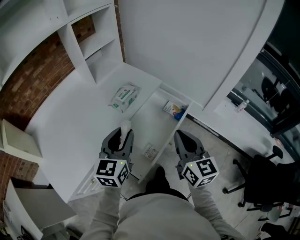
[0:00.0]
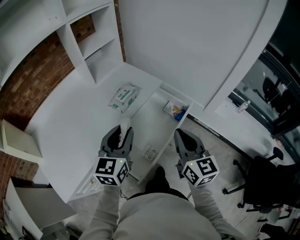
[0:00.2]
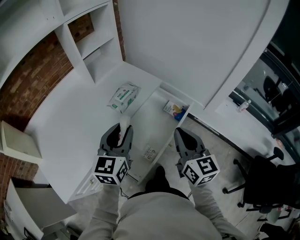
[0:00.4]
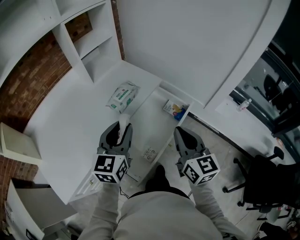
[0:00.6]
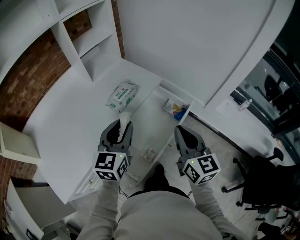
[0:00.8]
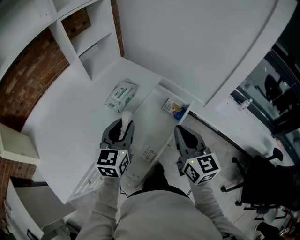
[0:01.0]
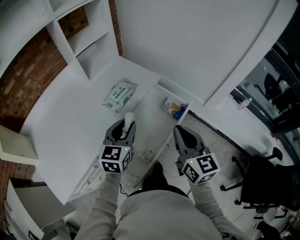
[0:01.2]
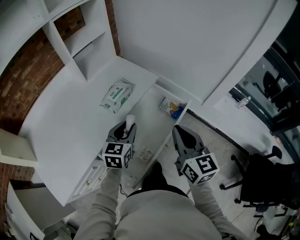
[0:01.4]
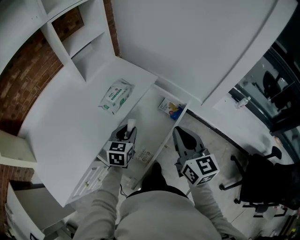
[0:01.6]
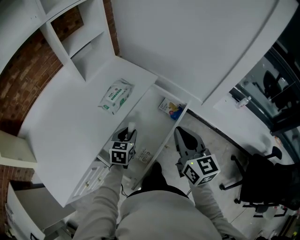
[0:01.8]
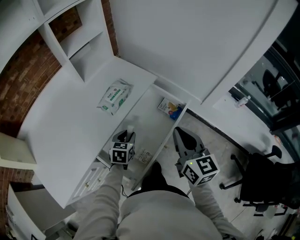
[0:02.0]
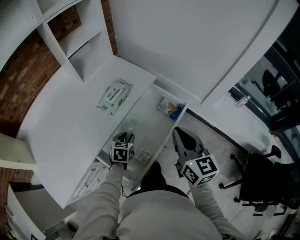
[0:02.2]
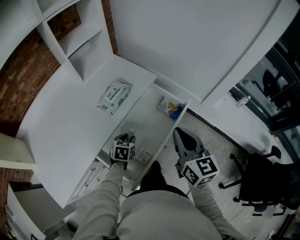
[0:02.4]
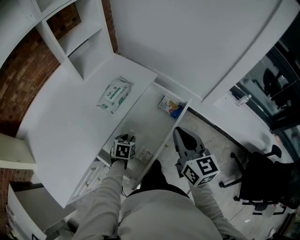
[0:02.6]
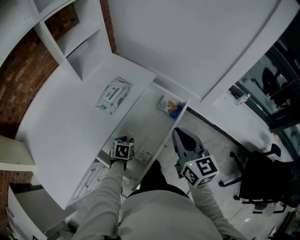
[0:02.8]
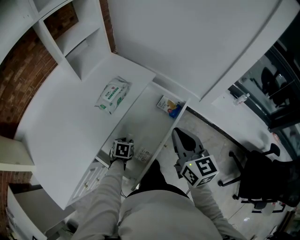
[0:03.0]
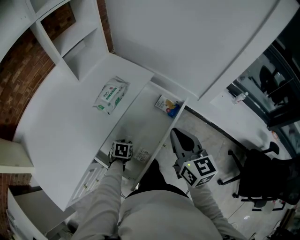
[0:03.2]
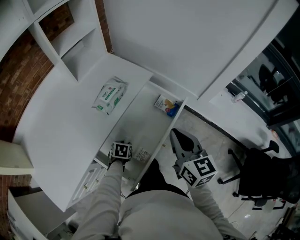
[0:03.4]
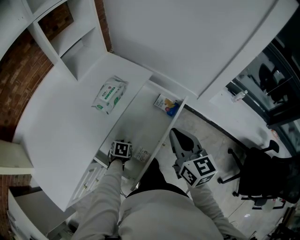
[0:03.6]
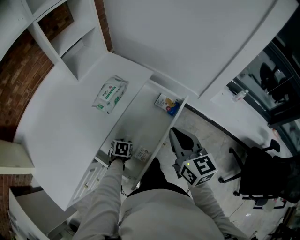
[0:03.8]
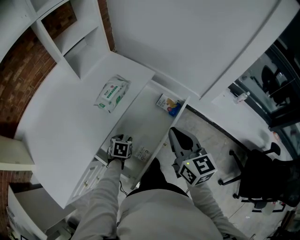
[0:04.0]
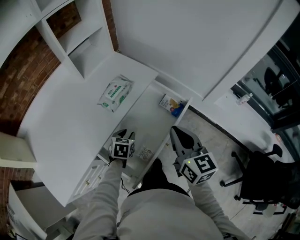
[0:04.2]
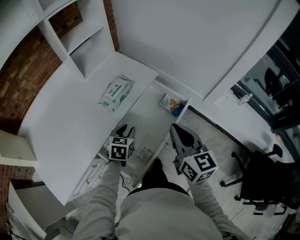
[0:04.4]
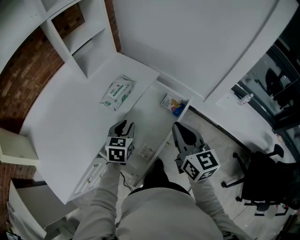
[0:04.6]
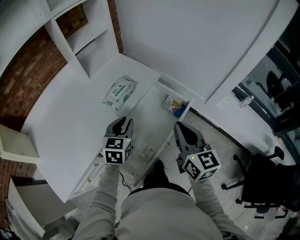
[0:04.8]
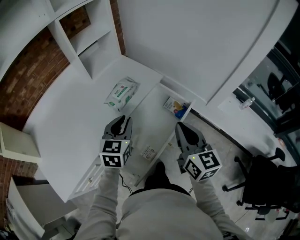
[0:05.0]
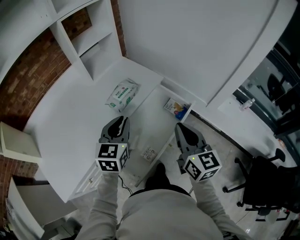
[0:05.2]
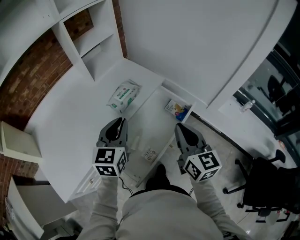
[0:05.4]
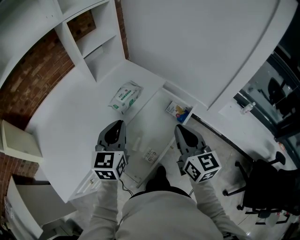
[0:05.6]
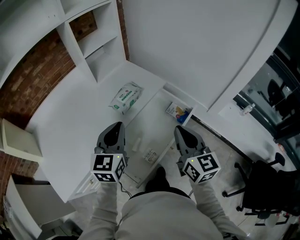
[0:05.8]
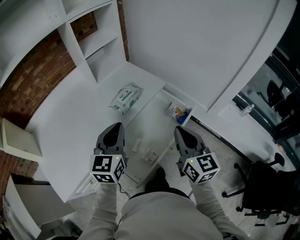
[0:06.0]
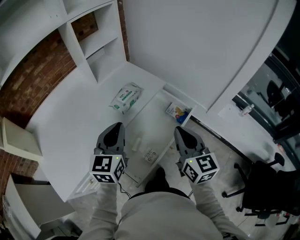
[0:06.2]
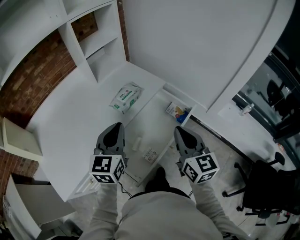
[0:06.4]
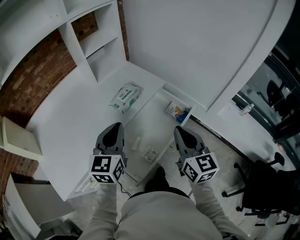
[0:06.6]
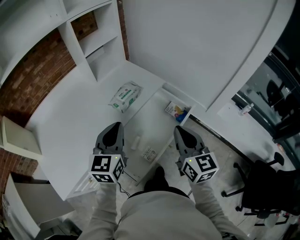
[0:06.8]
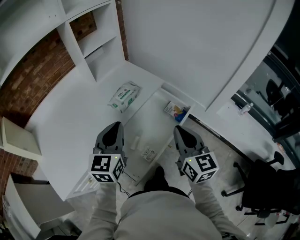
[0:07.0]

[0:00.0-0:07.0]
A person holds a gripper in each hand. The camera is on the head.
0:00.0 to 0:01.4: The right gripper shifts approximately 5 cm forward. The left gripper heads downward and forward, covering some 15 cm.
0:01.4 to 0:02.8: The left gripper travels downward by roughly 20 cm, and tips its fingers downward by some 30 degrees.
0:02.8 to 0:04.2: The left gripper heads upward, covering approximately 5 cm.
0:04.2 to 0:05.6: The left gripper is displaced upward by roughly 25 cm, points its fingers some 40 degrees further upward, and closes up.
0:05.6 to 0:07.0: The grippers move only a little.

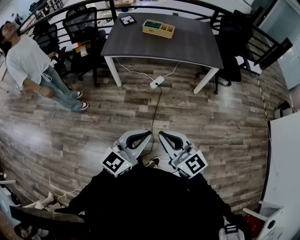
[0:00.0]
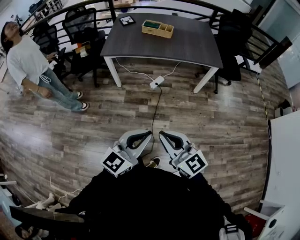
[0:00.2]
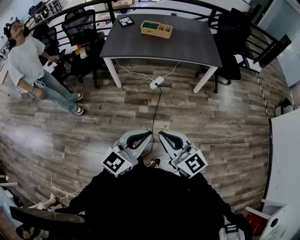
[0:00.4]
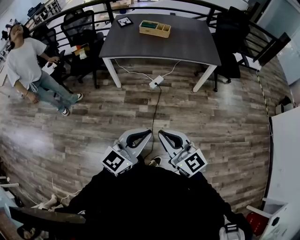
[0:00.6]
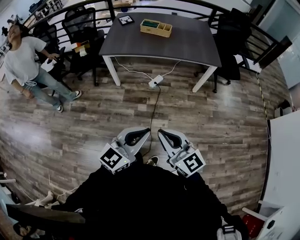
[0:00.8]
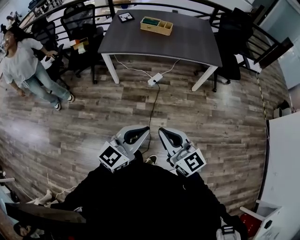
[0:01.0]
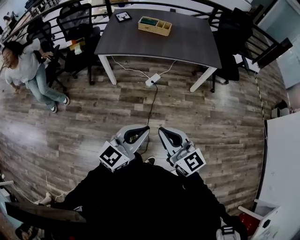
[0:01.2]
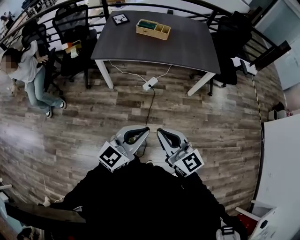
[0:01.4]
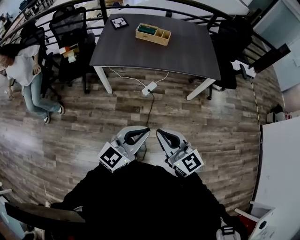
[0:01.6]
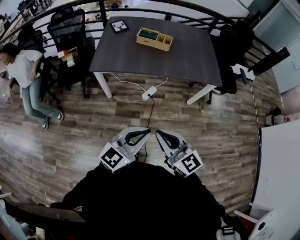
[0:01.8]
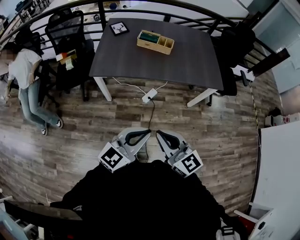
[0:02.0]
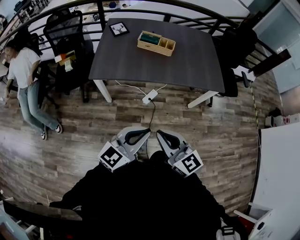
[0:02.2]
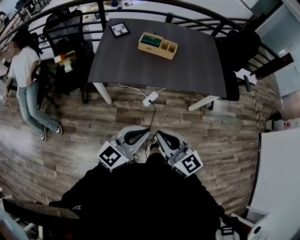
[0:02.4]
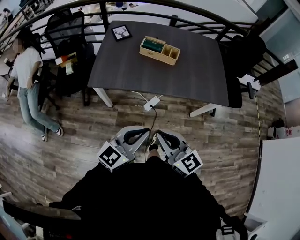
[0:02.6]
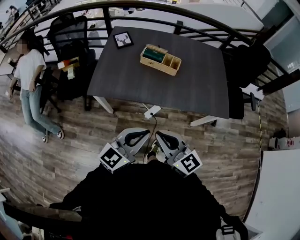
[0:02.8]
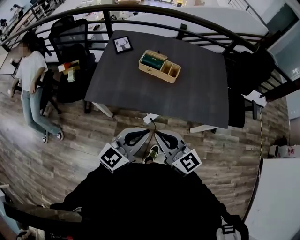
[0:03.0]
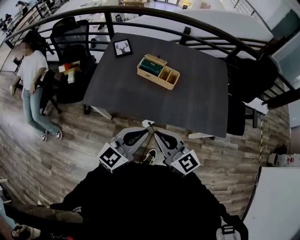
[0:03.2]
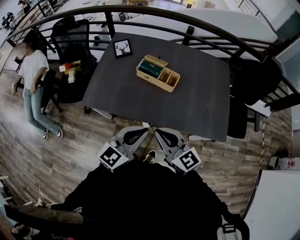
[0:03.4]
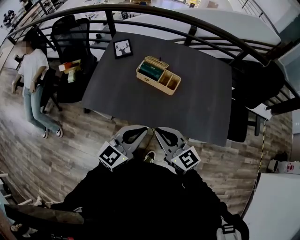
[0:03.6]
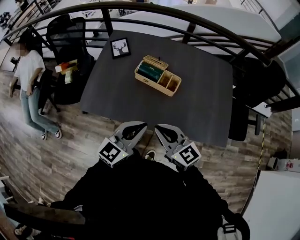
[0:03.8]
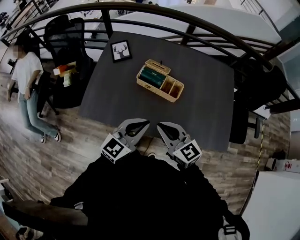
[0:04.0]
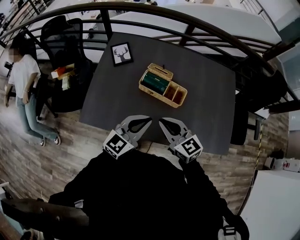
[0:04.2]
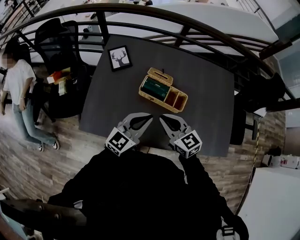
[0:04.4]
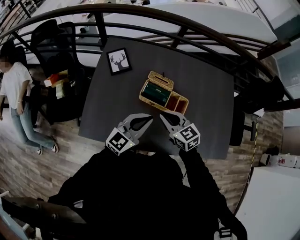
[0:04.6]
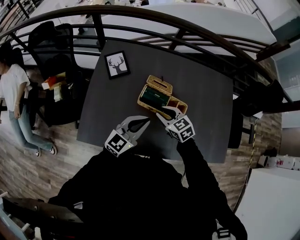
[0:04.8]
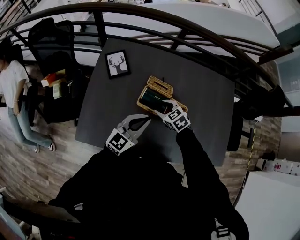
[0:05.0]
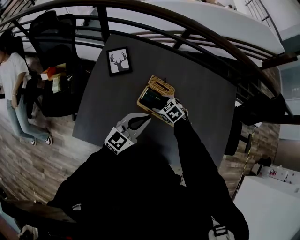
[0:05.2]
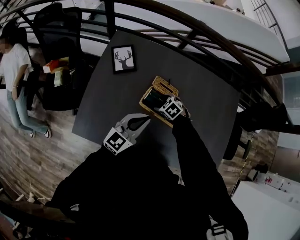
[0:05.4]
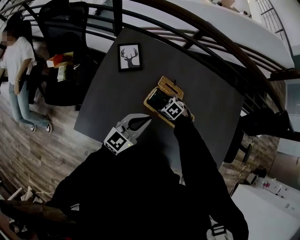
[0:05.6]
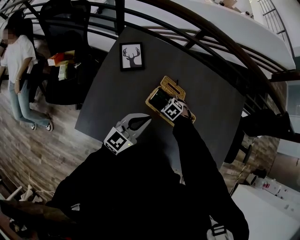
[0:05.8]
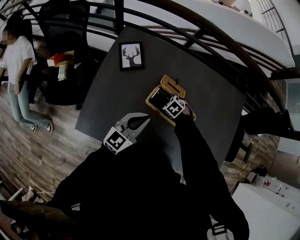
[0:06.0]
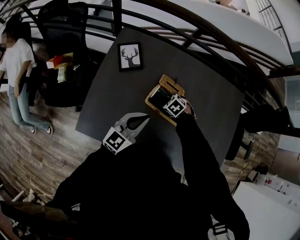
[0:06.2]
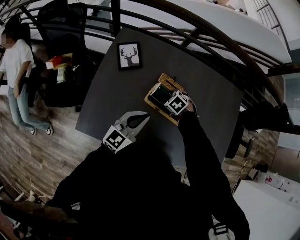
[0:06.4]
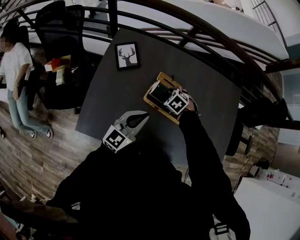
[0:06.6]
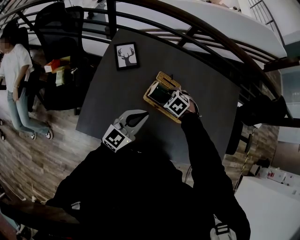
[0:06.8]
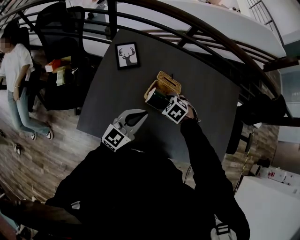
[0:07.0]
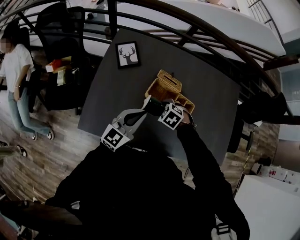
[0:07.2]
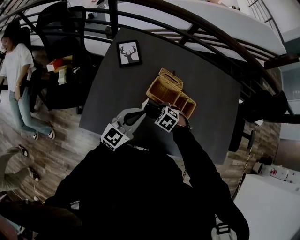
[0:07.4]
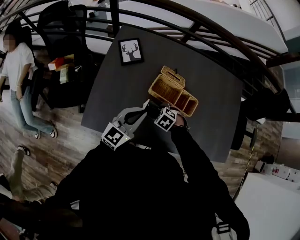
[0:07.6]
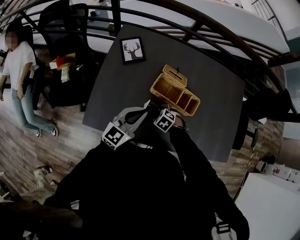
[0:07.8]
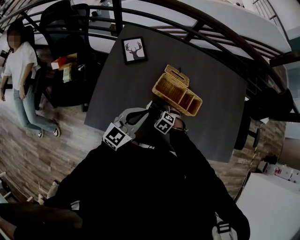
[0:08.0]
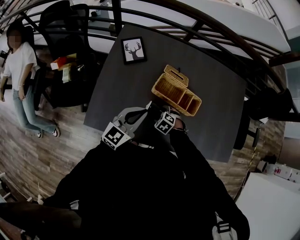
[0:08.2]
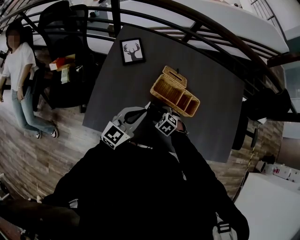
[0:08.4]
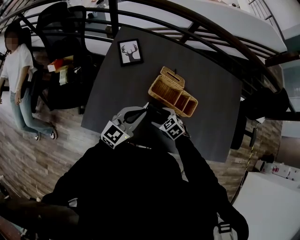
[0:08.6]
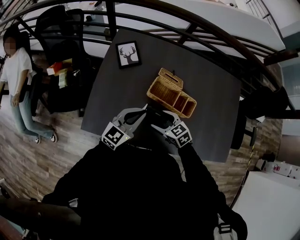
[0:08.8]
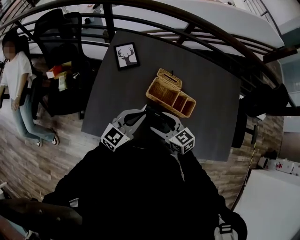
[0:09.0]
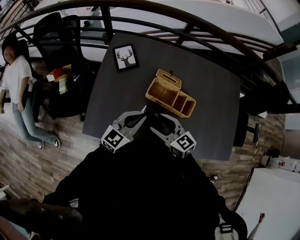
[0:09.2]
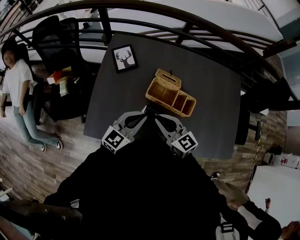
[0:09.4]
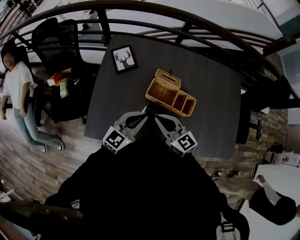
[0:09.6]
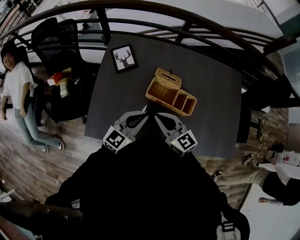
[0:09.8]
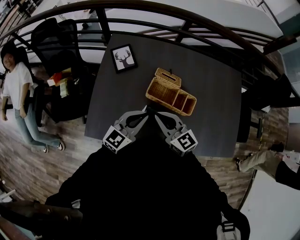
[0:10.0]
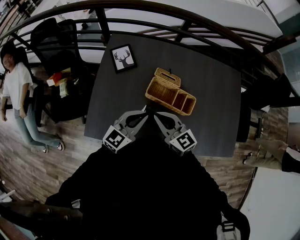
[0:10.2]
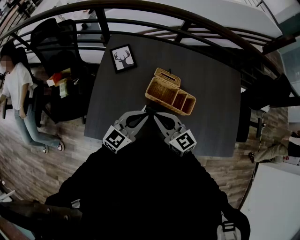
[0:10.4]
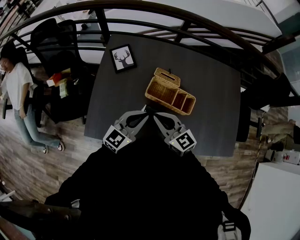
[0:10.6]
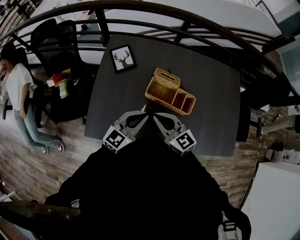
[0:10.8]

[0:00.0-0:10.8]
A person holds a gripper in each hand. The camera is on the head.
0:00.0 to 0:01.6: Both grippers travel together forward, roughly 15 cm.
0:01.6 to 0:03.0: The grippers both shift forward by some 35 cm.
0:03.0 to 0:04.6: The grippers both shift forward by some 40 cm. The right gripper changes its angle by approximately 20 degrees.
0:04.6 to 0:06.2: The left gripper ends up roughly 10 cm from where it was. Meanwhile the right gripper heads downward, covering approximately 20 cm, points its fingers some 50 degrees further downward, and opens up.
0:06.2 to 0:07.8: The right gripper goes upward and returns, some 10 cm each way; the left gripper shifts by approximately 5 cm.
0:07.8 to 0:09.2: The right gripper heads upward, covering about 20 cm, and tilts its fingers some 60 degrees upward.
0:09.2 to 0:10.8: The right gripper closes.

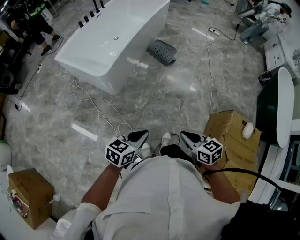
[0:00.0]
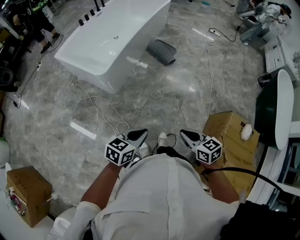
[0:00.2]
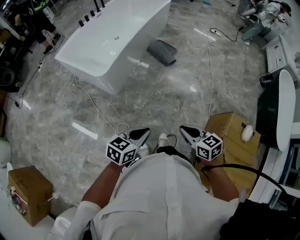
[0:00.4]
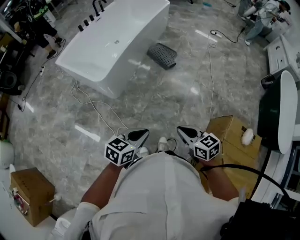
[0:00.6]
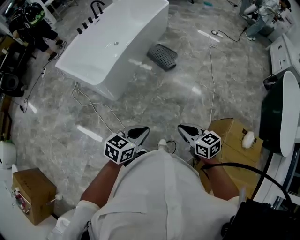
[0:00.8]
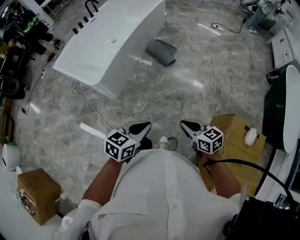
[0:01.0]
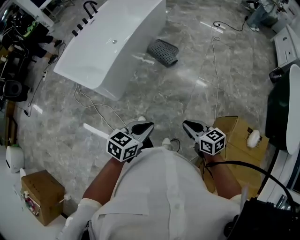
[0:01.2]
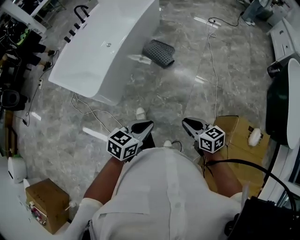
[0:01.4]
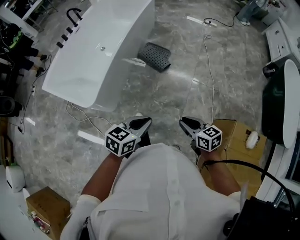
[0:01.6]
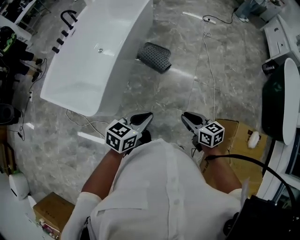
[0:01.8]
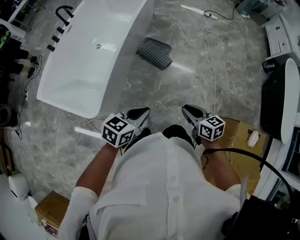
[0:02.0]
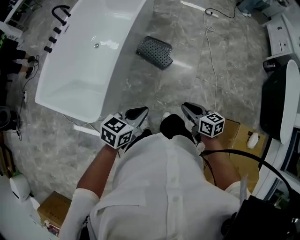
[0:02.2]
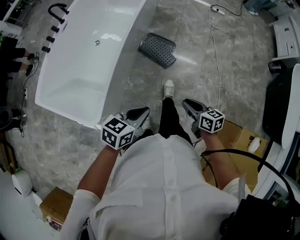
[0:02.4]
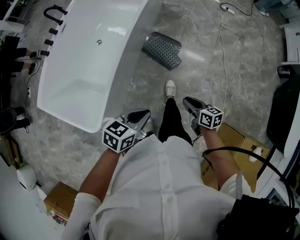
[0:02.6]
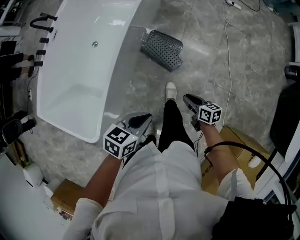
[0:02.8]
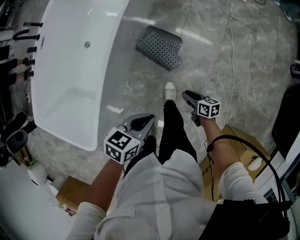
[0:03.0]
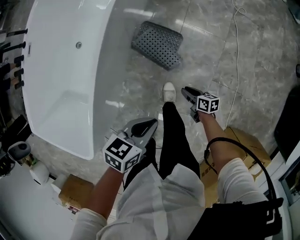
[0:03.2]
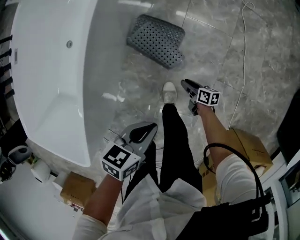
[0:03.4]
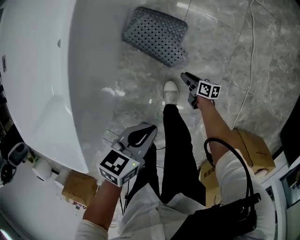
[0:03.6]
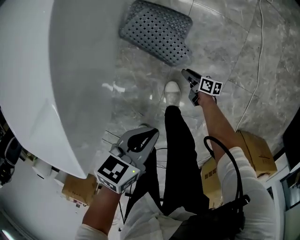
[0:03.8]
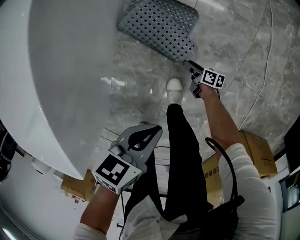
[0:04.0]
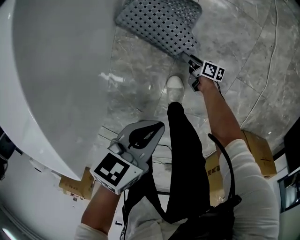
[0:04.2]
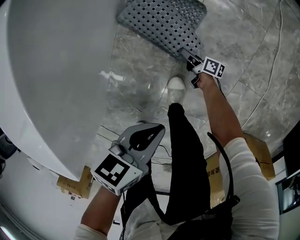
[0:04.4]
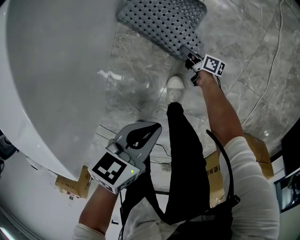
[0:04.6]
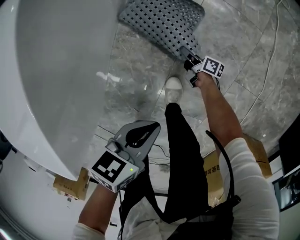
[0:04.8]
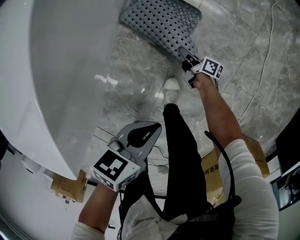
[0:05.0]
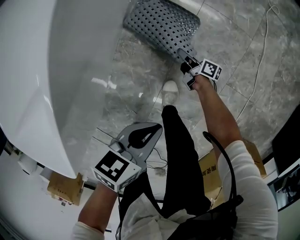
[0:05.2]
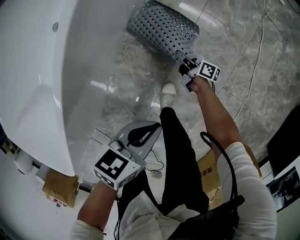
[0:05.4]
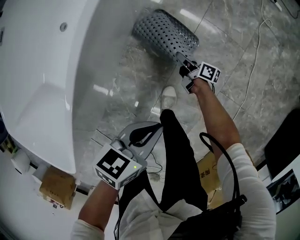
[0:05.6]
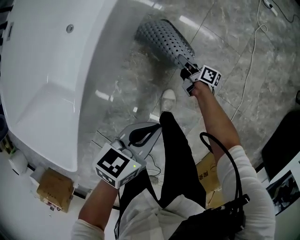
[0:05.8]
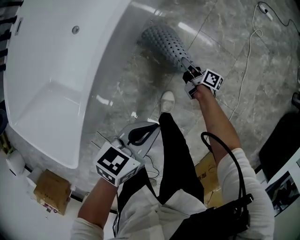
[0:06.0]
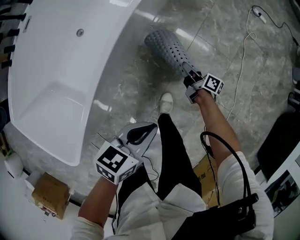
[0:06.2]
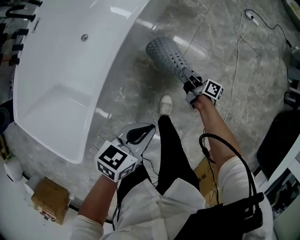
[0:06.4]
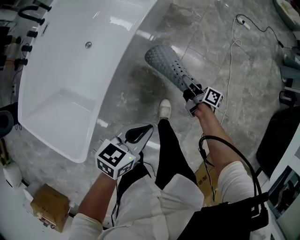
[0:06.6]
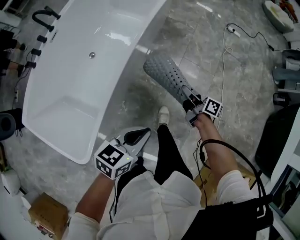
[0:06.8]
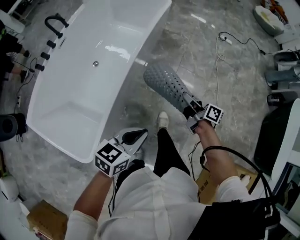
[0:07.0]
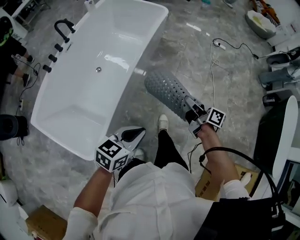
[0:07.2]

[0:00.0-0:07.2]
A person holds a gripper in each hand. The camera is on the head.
0:00.0 to 0:01.4: Both grippers move forward and to the right, roughly 20 cm.
0:01.4 to 0:02.8: Both grippers are carried forward, some 50 cm. The right gripper goes some 25 cm downward, and rotates approximately 30 degrees.
0:02.8 to 0:04.4: The right gripper goes some 60 cm downward, changes its angle by roughly 40 degrees, and opens its fingers. The left gripper is displaced downward by approximately 35 cm.
0:04.4 to 0:05.8: The right gripper moves upward, approximately 25 cm, and closes up. Meanwhile the left gripper moves upward, roughly 15 cm.
0:05.8 to 0:07.2: The right gripper moves upward and backward, some 60 cm, while the left gripper travels upward and backward by about 35 cm, and changes its angle by roughly 20 degrees.
